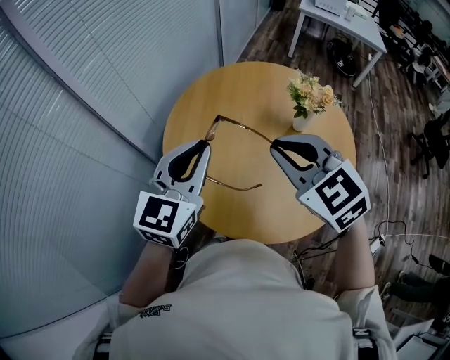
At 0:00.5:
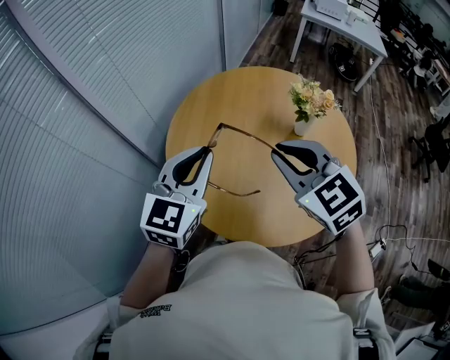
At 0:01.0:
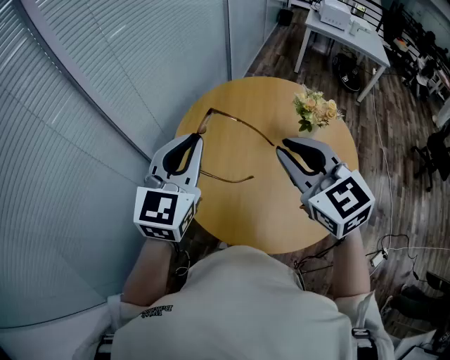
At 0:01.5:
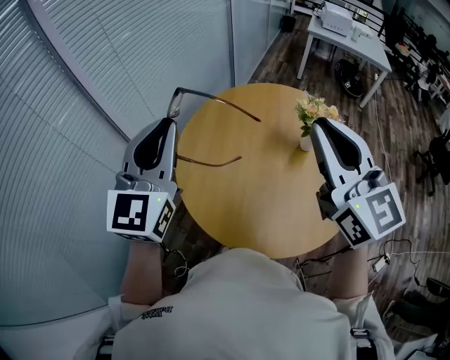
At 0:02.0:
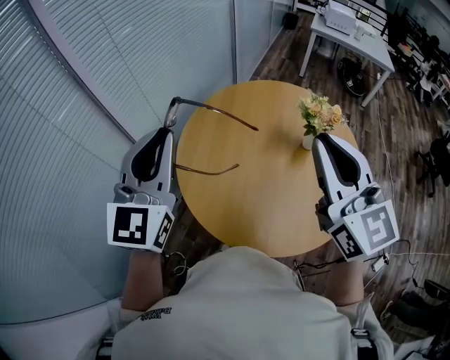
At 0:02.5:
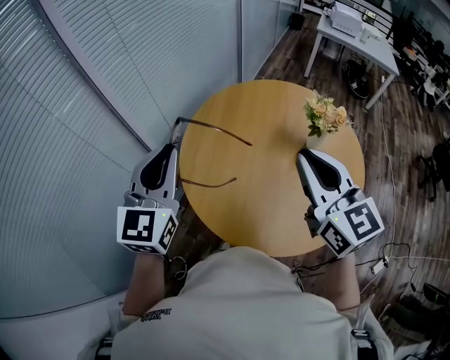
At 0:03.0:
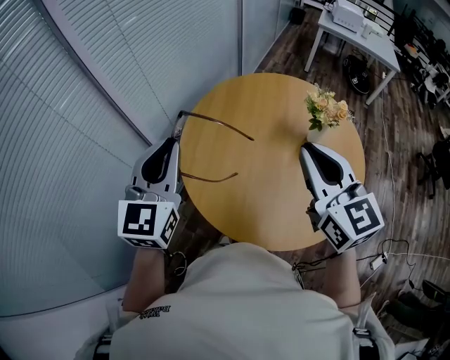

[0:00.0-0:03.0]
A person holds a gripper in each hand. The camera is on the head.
0:00.0 to 0:01.5: The left gripper shifts some 15 cm upward and to the left, and turns by roughly 20 degrees, while the right gripper is displaced upward by some 15 cm, and tips its fingers upward by approximately 30 degrees.
0:01.5 to 0:03.0: The two grippers go approximately 10 cm downward.

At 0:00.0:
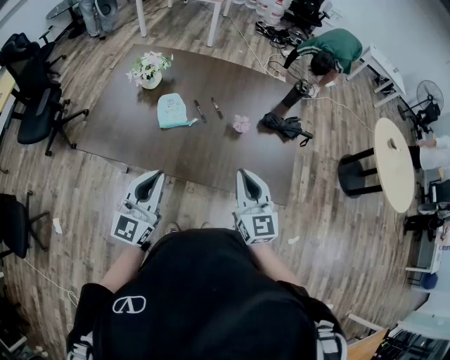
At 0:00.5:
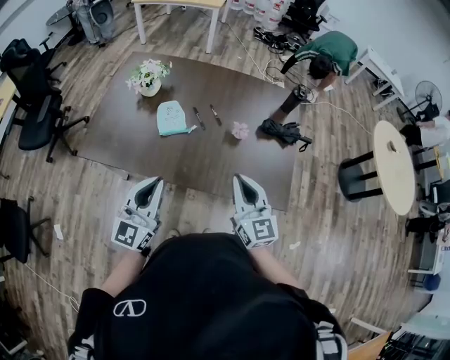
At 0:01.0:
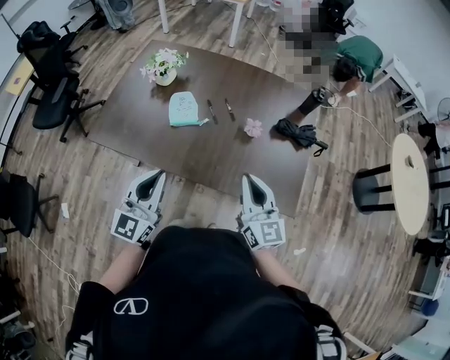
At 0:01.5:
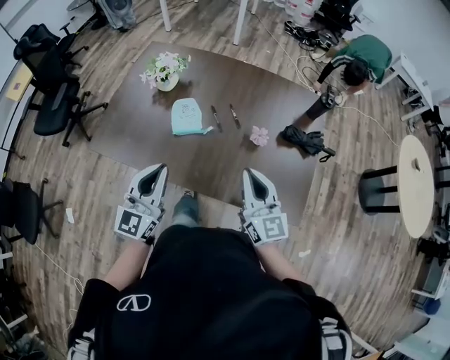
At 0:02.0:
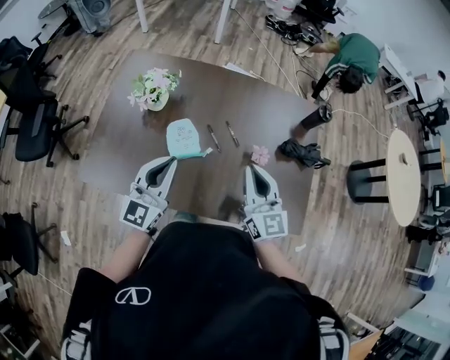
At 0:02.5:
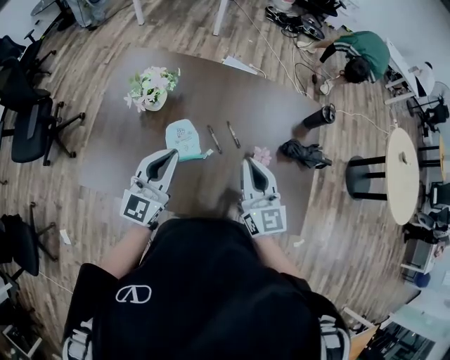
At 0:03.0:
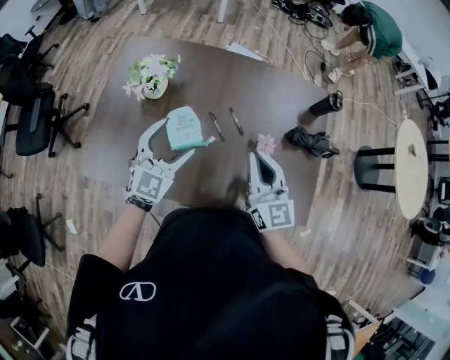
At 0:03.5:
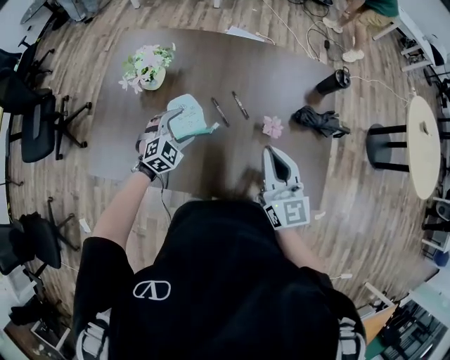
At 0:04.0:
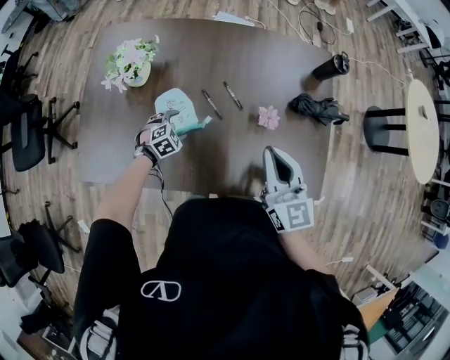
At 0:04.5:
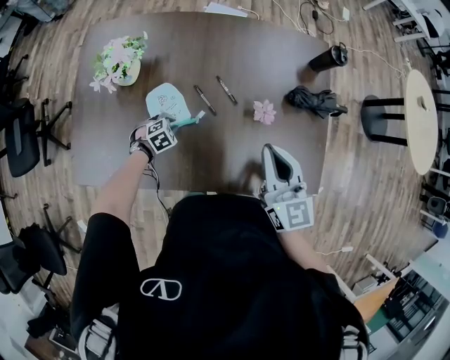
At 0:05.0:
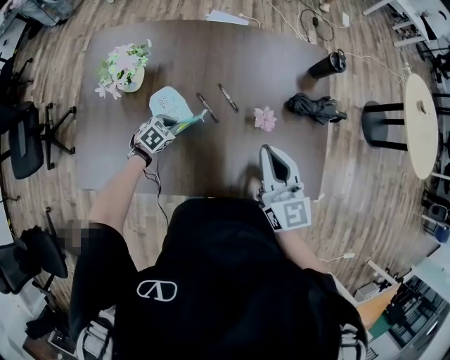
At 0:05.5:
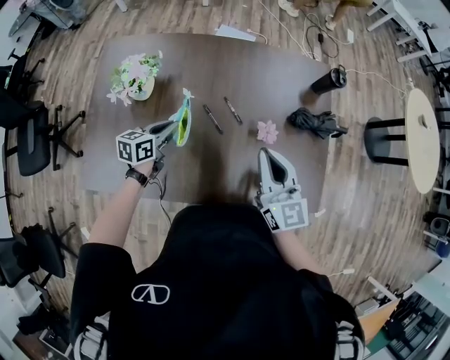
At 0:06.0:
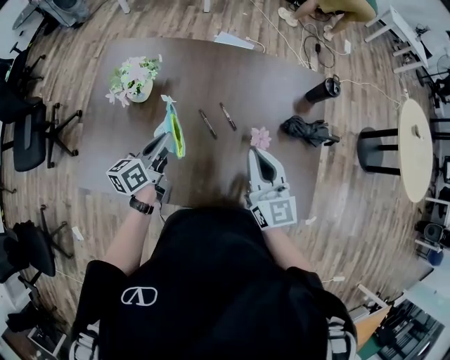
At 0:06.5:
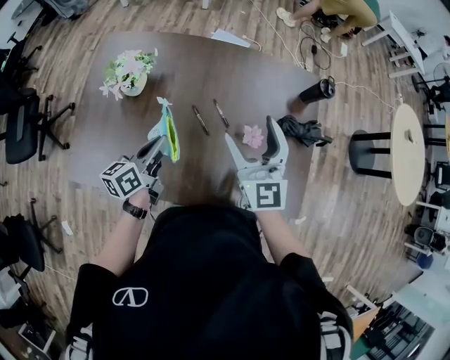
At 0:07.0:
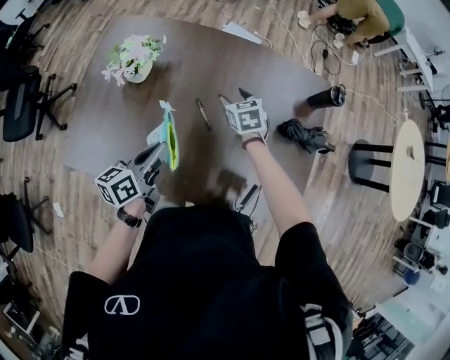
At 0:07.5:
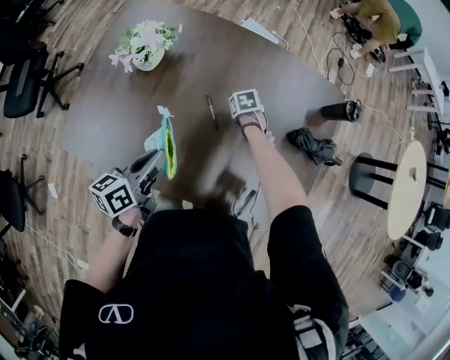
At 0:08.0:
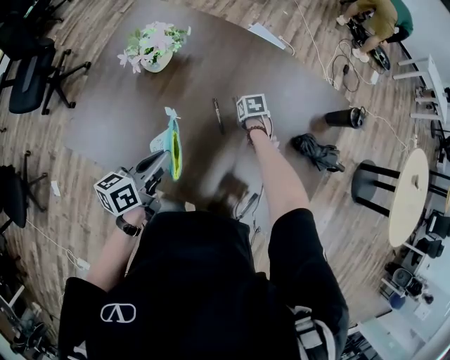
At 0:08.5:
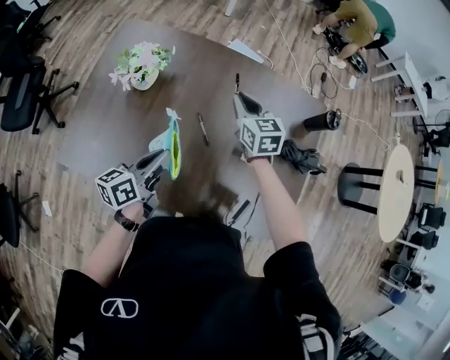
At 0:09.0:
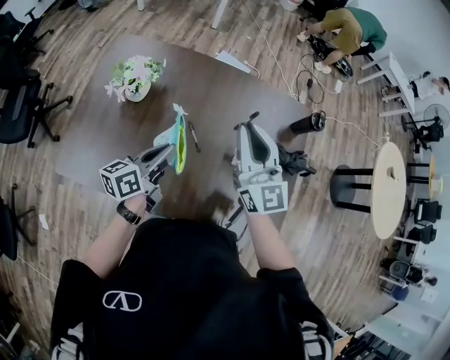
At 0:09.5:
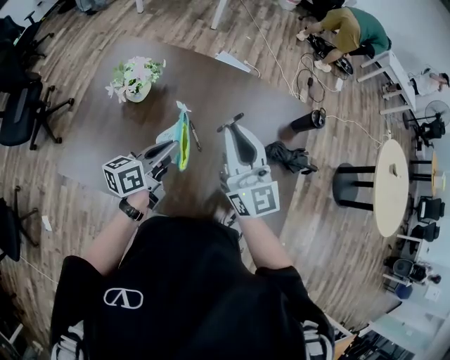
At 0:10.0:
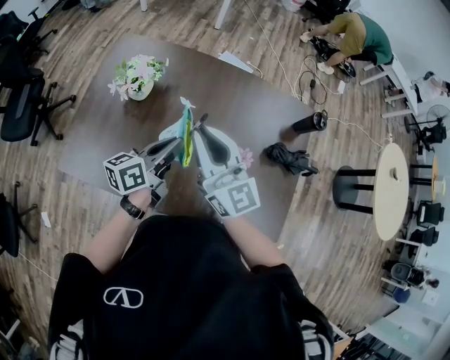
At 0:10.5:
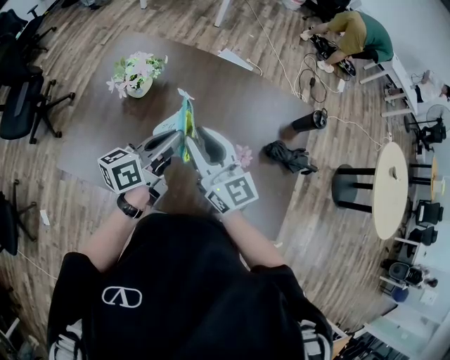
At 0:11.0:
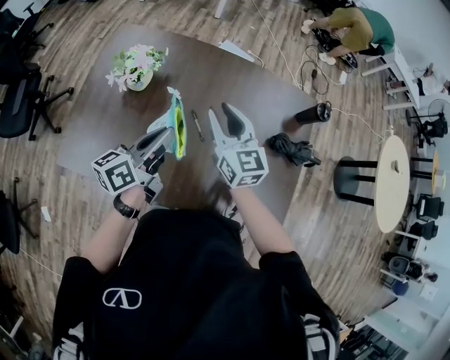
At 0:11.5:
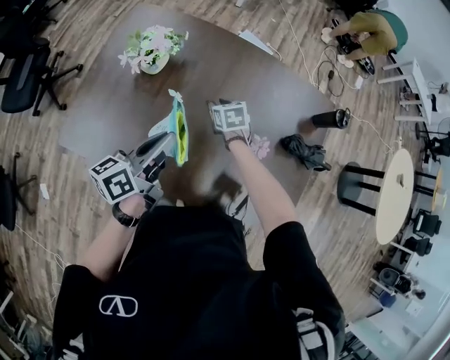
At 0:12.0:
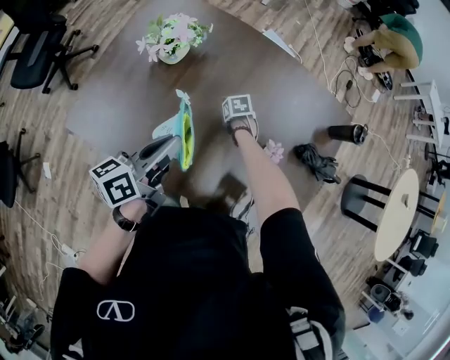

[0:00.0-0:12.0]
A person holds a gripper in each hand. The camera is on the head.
0:00.0 to 0:02.0: Both grippers move forward, some 25 cm.
0:02.0 to 0:04.0: The right gripper heads downward, covering approximately 5 cm; the left gripper travels downward by roughly 40 cm, tips its fingers downward by approximately 70 degrees, and opens up.
0:04.0 to 0:06.0: The left gripper shifts about 25 cm upward, tilts its fingers roughly 50 degrees upward, and closes its fingers.
0:06.0 to 0:08.0: The right gripper goes roughly 35 cm downward, tilts its fingers about 70 degrees downward, and opens, then closes once more. The left gripper ends up roughly 10 cm from where it was.
0:08.0 to 0:10.0: The left gripper travels upward by approximately 10 cm, while the right gripper is displaced upward by about 50 cm, and tips its fingers upward by roughly 90 degrees.
0:10.0 to 0:12.0: The right gripper travels downward by approximately 50 cm, and tilts its fingers about 90 degrees downward. The left gripper moves some 10 cm.

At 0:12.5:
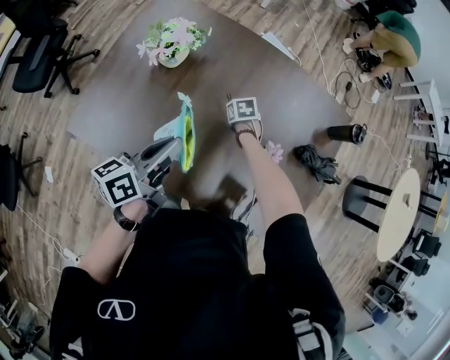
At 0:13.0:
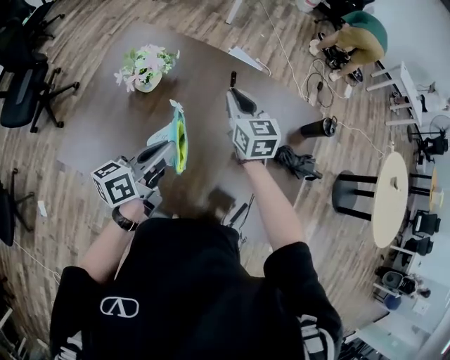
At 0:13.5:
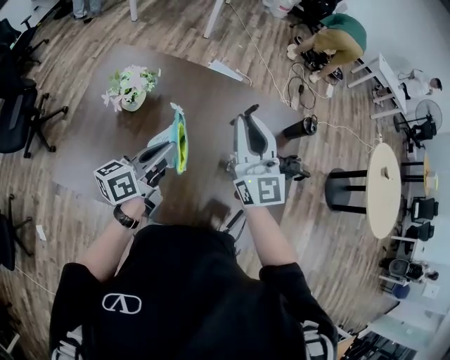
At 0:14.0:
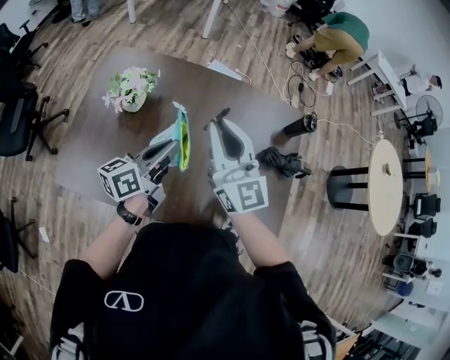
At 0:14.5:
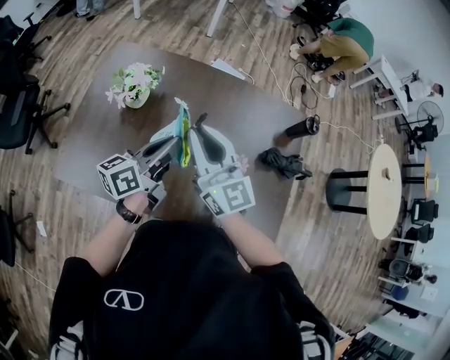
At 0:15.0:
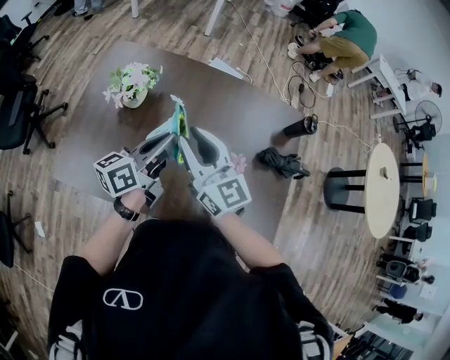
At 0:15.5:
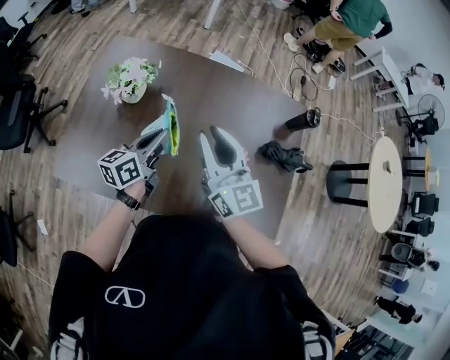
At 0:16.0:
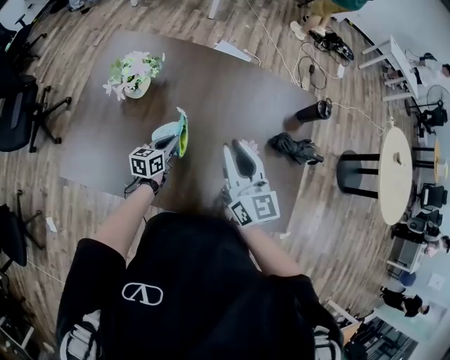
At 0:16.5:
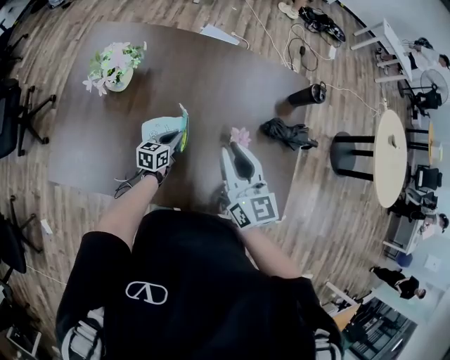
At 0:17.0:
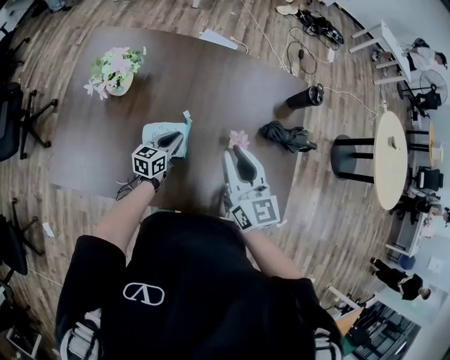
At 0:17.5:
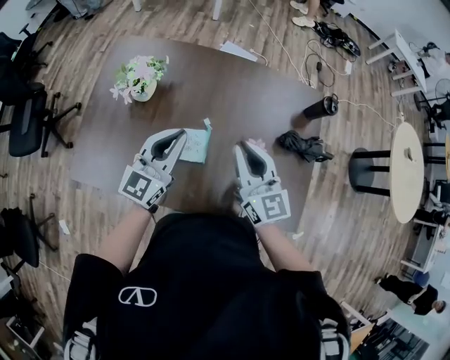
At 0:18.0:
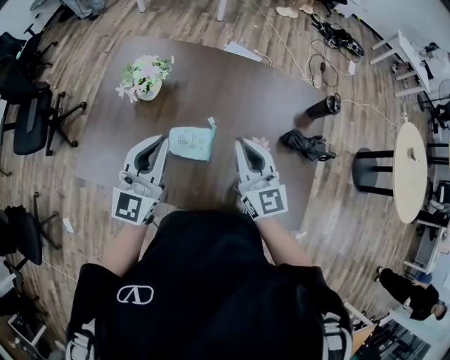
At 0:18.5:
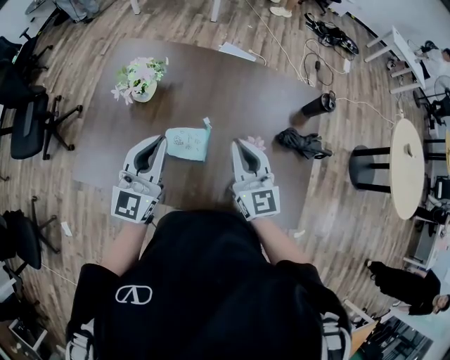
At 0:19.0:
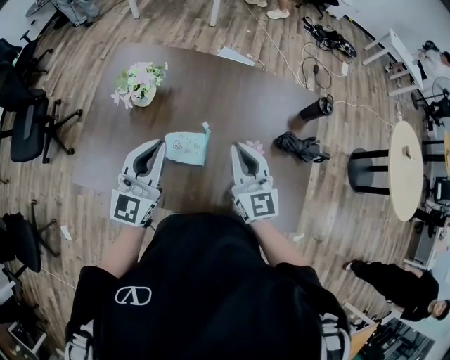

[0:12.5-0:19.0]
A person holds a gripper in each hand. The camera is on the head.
0:12.5 to 0:14.5: The left gripper is displaced upward and to the right by about 10 cm. Meanwhile the right gripper shifts approximately 40 cm upward, and tilts its fingers approximately 80 degrees upward.
0:14.5 to 0:17.0: The right gripper shifts some 15 cm to the right and downward, and turns by some 20 degrees. Meanwhile the left gripper is displaced downward by roughly 30 cm, and rotates about 30 degrees.
0:17.0 to 0:19.0: The left gripper heads upward, covering about 30 cm, and swivels approximately 50 degrees.

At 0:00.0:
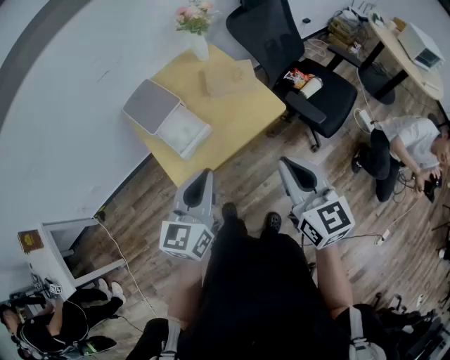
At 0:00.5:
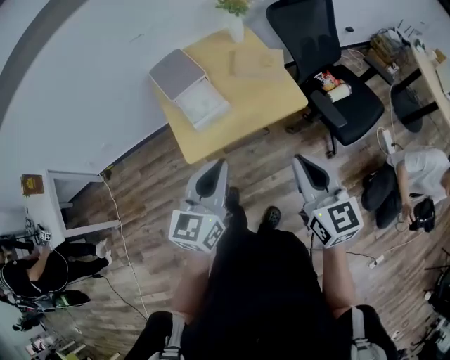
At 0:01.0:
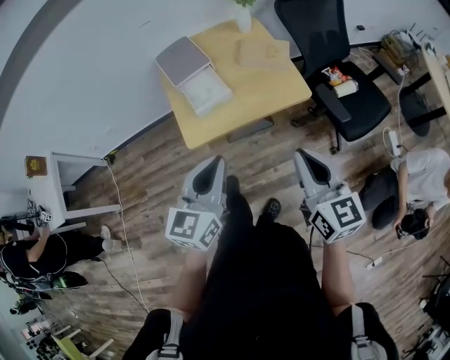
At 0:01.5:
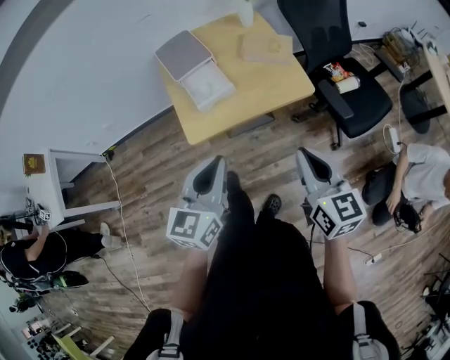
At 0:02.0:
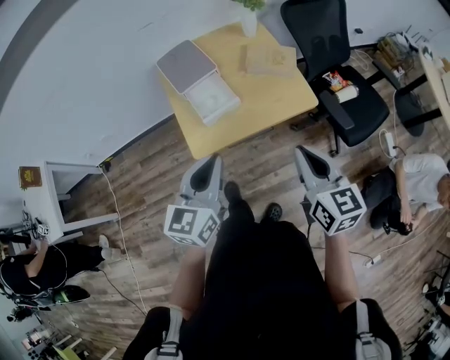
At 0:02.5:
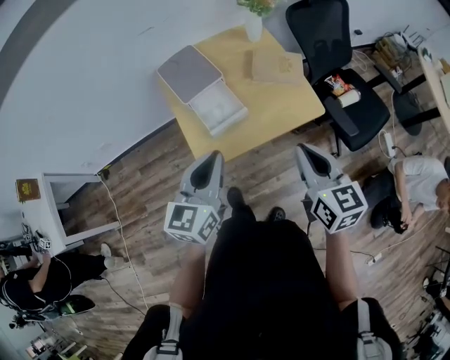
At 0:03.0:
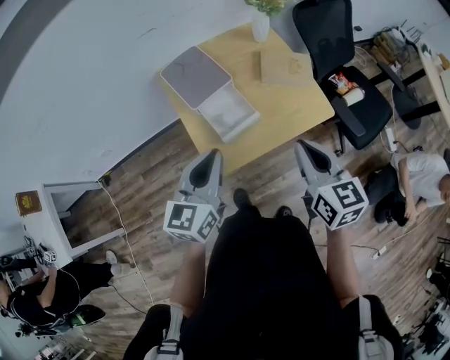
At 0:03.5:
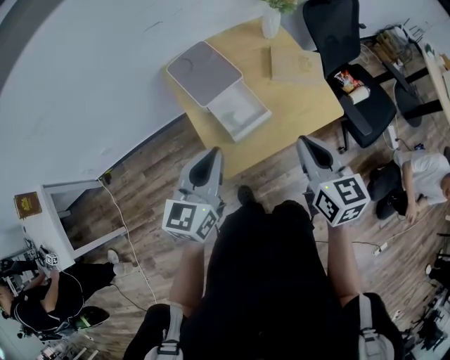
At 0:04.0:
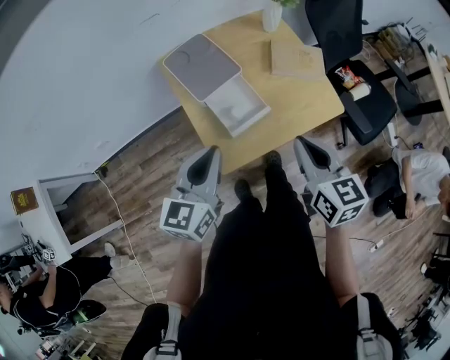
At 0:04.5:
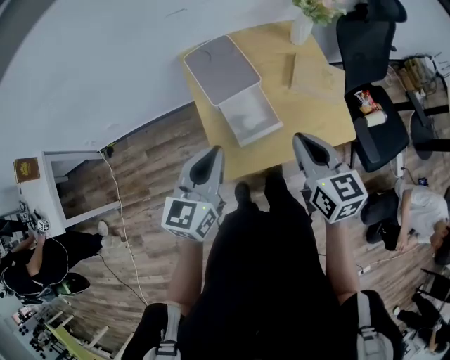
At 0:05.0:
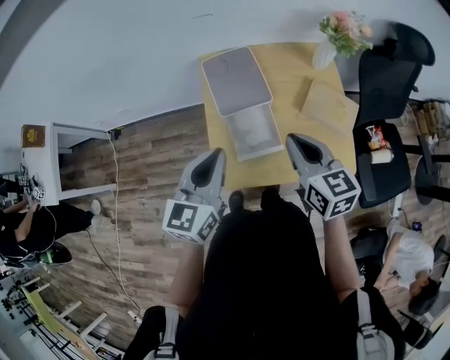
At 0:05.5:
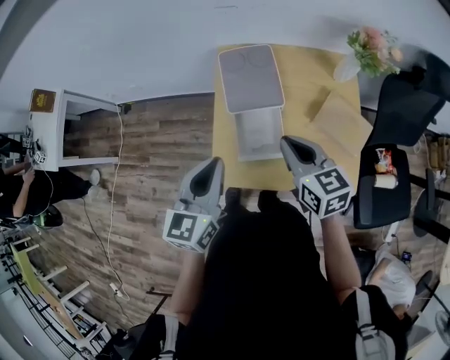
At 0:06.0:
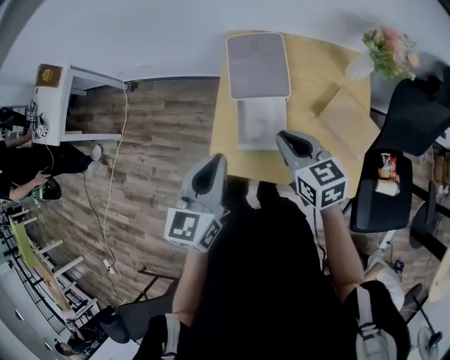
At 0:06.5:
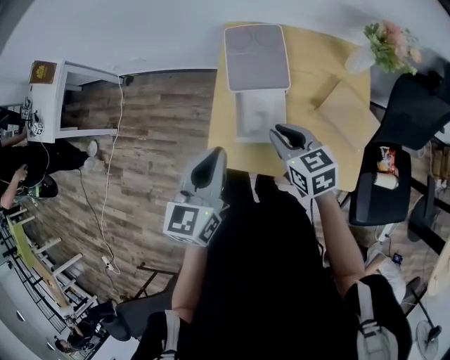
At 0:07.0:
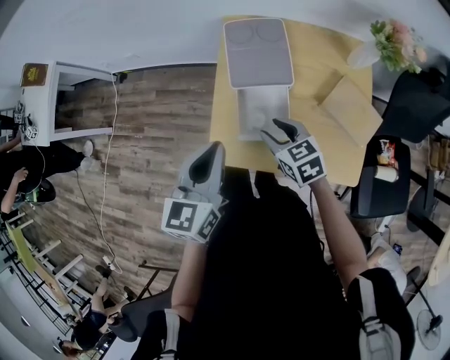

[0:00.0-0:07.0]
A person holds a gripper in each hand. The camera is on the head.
0:00.0 to 0:02.0: The left gripper moves approximately 10 cm backward and comes back.
0:02.0 to 0:03.5: Both grippers move to the left and forward, some 20 cm.
0:03.5 to 0:05.0: The left gripper shifts some 10 cm forward, and turns by some 20 degrees, while the right gripper travels forward by roughly 15 cm, and swivels some 30 degrees.
0:05.0 to 0:07.0: The right gripper goes approximately 15 cm downward, rotates about 30 degrees, and opens its fingers; the left gripper is displaced downward by some 5 cm.
